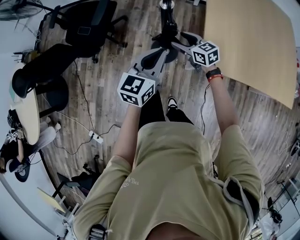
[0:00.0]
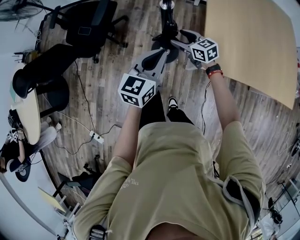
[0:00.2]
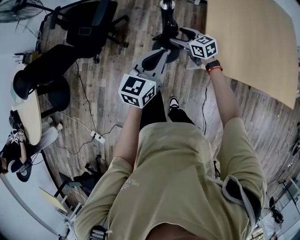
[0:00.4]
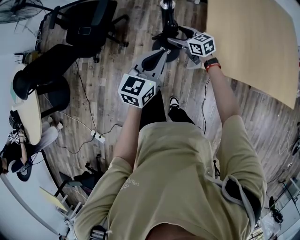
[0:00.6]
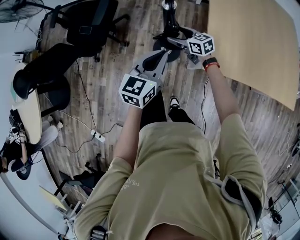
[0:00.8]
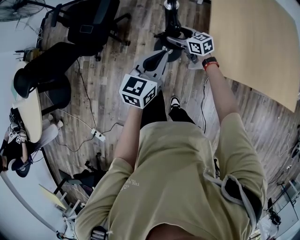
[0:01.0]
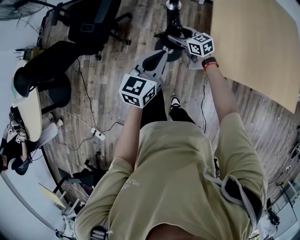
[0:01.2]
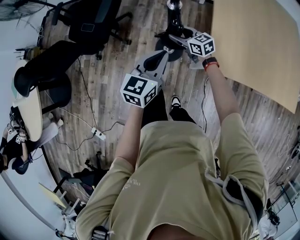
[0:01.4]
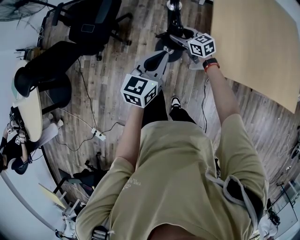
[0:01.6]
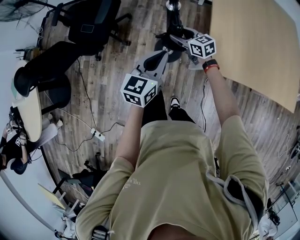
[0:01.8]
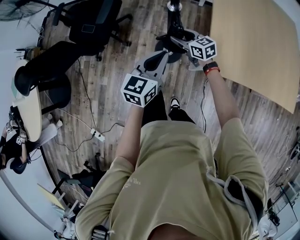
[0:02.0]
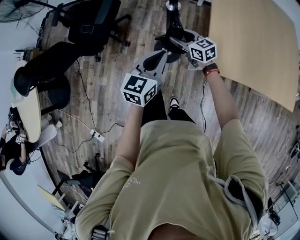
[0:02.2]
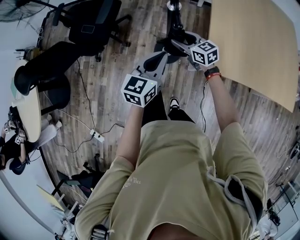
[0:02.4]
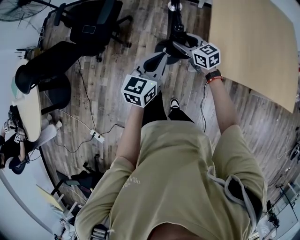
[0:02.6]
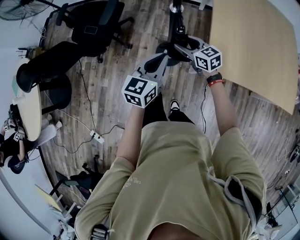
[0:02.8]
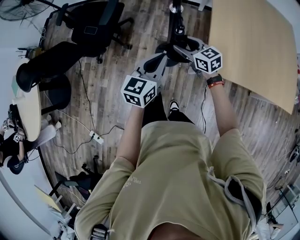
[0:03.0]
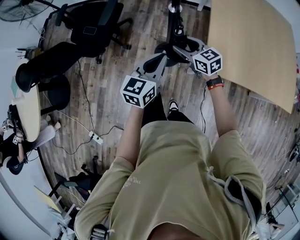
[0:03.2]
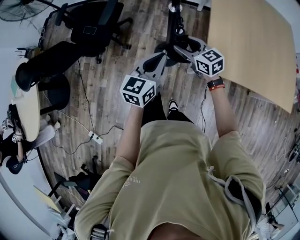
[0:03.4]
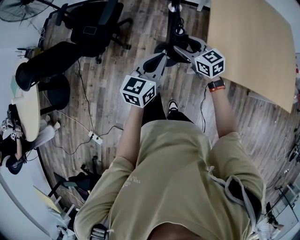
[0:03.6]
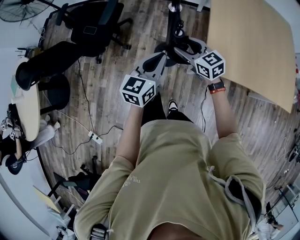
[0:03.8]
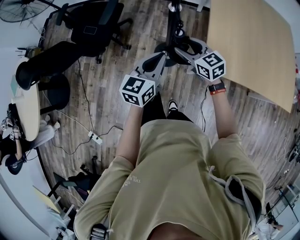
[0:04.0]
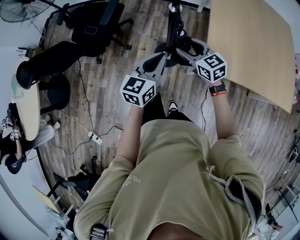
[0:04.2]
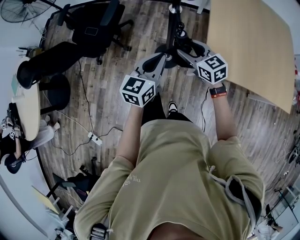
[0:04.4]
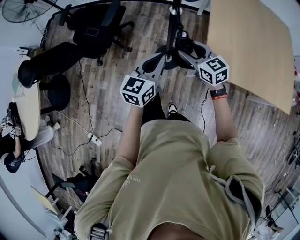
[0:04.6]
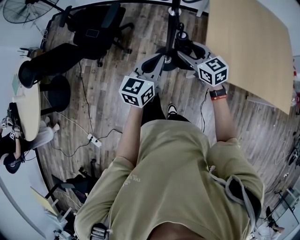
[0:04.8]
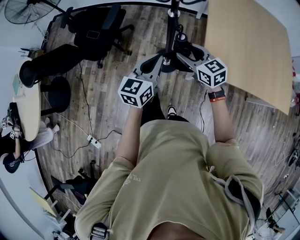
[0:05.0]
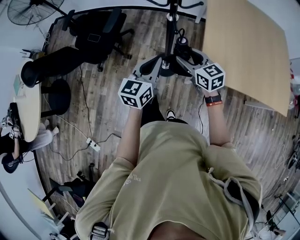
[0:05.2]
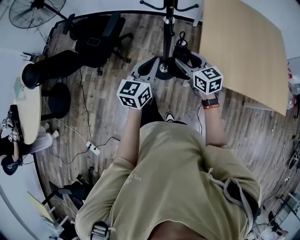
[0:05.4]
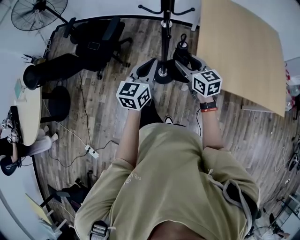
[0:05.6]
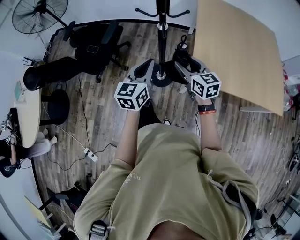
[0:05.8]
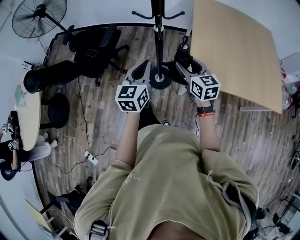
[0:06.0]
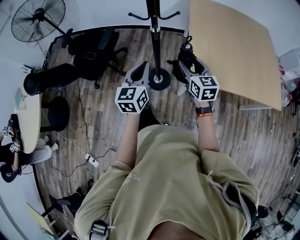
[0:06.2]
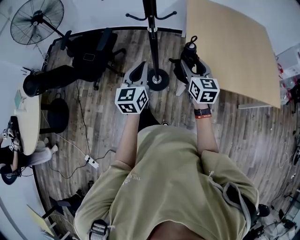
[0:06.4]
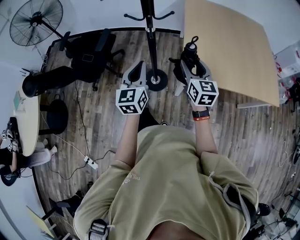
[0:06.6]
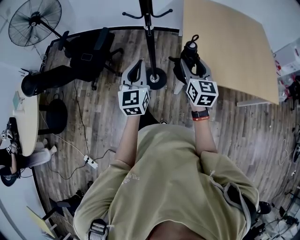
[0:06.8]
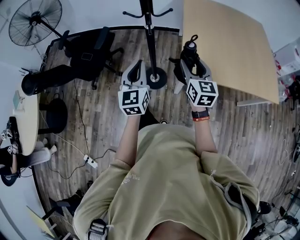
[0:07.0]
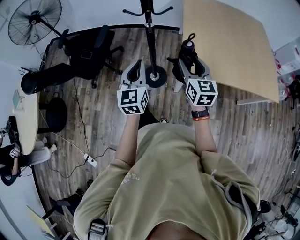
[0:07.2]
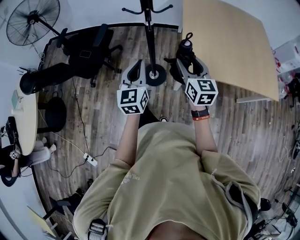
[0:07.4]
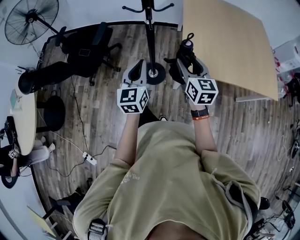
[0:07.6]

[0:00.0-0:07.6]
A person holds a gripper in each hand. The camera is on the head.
0:00.0 to 0:01.6: The right gripper shifts about 5 cm forward.
0:01.6 to 0:03.0: The right gripper shifts roughly 10 cm upward and backward.
0:03.0 to 0:04.6: The right gripper travels upward and backward by approximately 10 cm.
0:04.6 to 0:06.0: The right gripper travels backward, upward and to the right by about 15 cm. The left gripper is displaced upward by approximately 10 cm.
0:06.0 to 0:07.6: Both grippers move backward, roughly 5 cm.

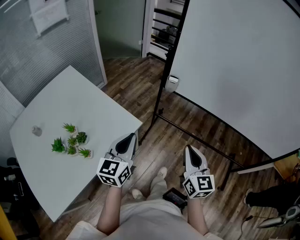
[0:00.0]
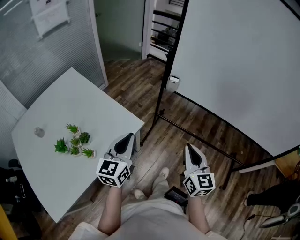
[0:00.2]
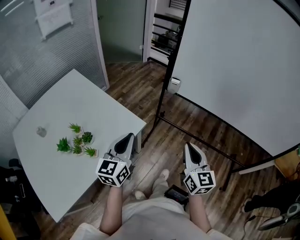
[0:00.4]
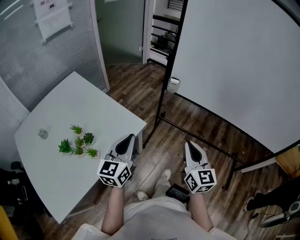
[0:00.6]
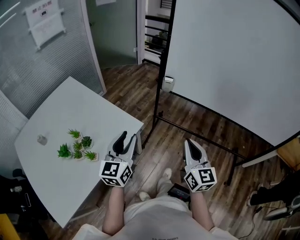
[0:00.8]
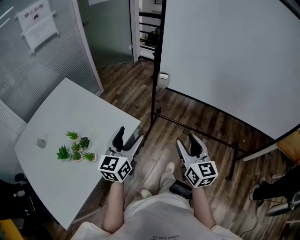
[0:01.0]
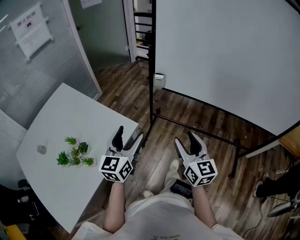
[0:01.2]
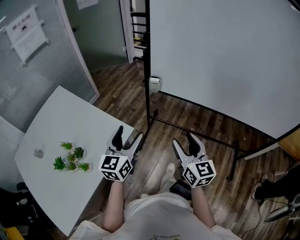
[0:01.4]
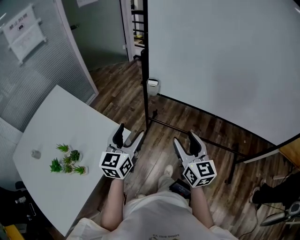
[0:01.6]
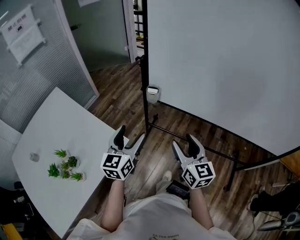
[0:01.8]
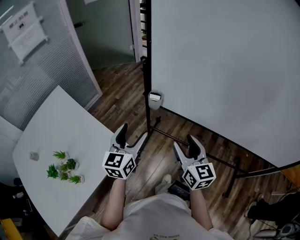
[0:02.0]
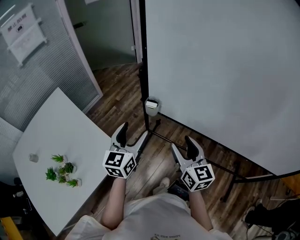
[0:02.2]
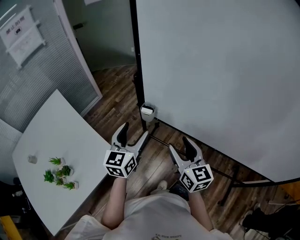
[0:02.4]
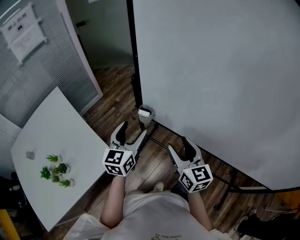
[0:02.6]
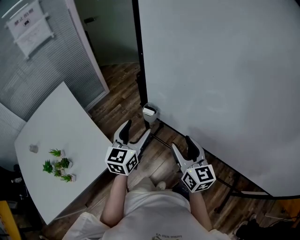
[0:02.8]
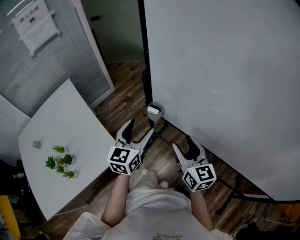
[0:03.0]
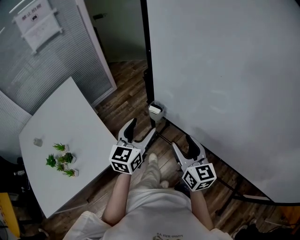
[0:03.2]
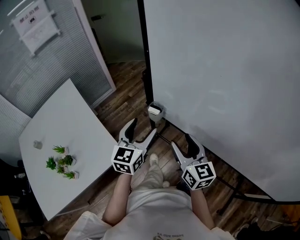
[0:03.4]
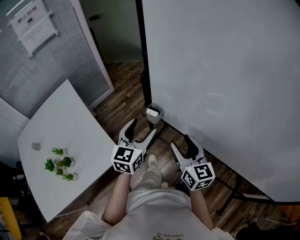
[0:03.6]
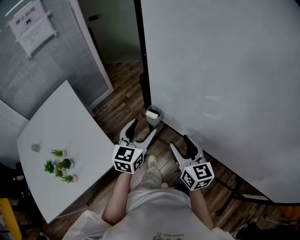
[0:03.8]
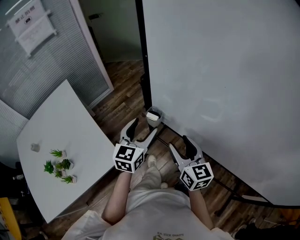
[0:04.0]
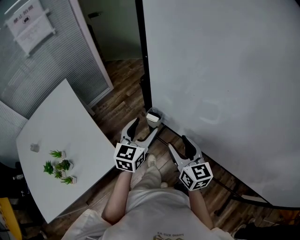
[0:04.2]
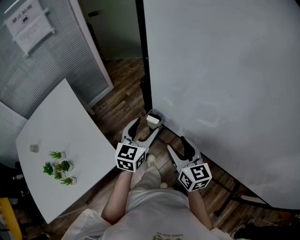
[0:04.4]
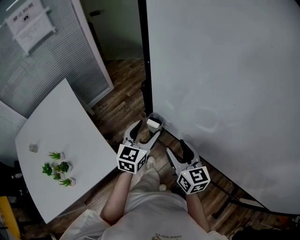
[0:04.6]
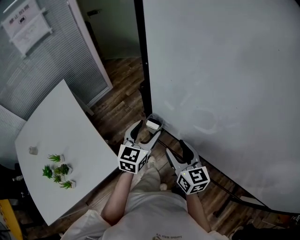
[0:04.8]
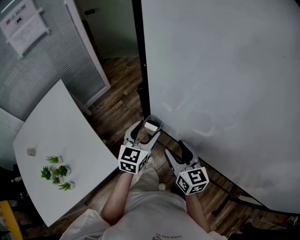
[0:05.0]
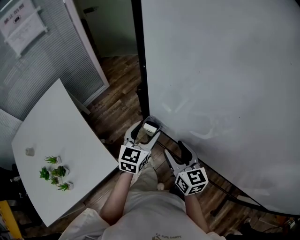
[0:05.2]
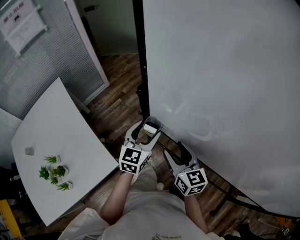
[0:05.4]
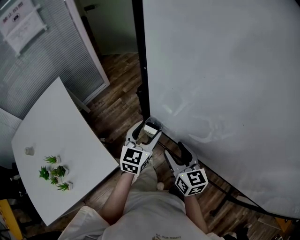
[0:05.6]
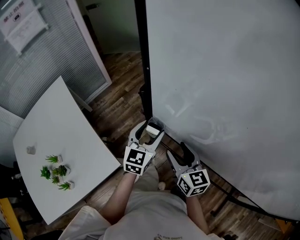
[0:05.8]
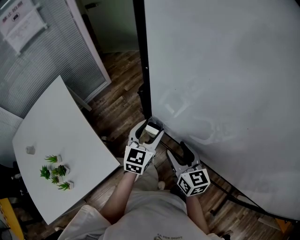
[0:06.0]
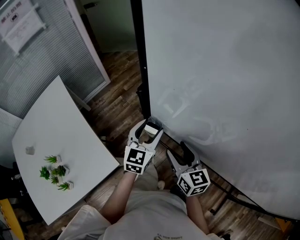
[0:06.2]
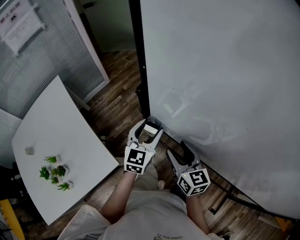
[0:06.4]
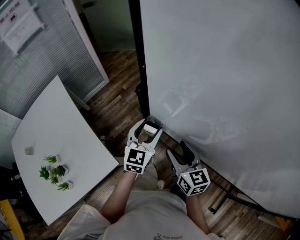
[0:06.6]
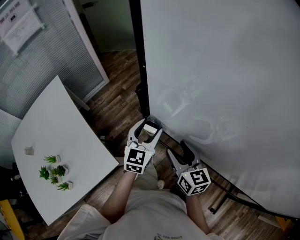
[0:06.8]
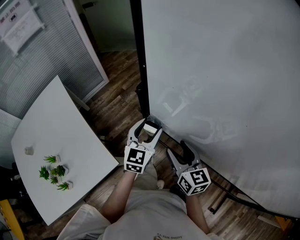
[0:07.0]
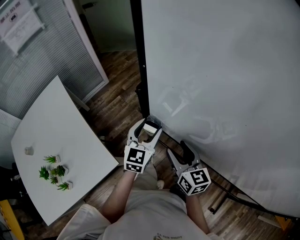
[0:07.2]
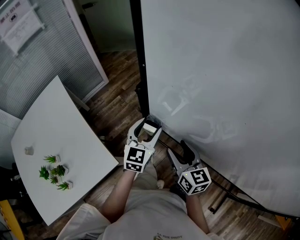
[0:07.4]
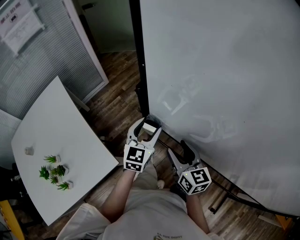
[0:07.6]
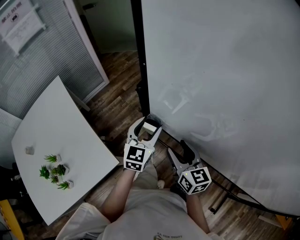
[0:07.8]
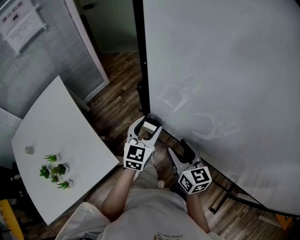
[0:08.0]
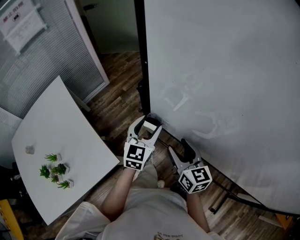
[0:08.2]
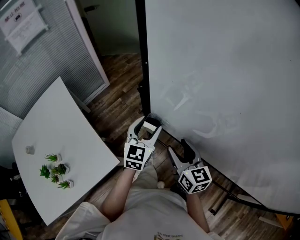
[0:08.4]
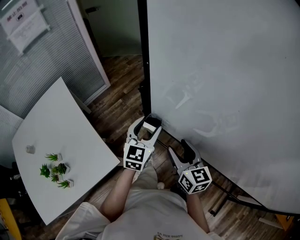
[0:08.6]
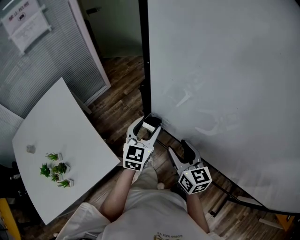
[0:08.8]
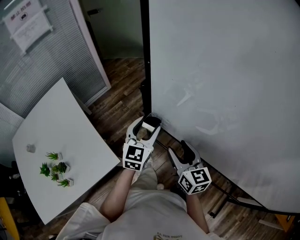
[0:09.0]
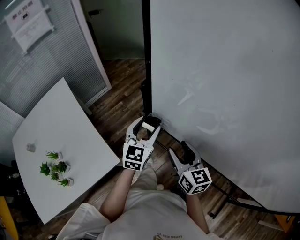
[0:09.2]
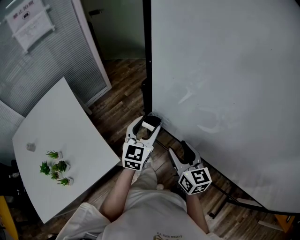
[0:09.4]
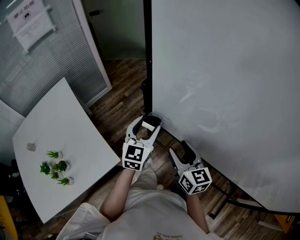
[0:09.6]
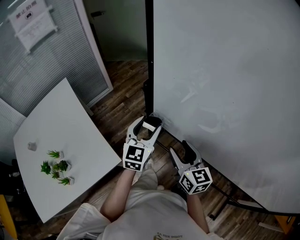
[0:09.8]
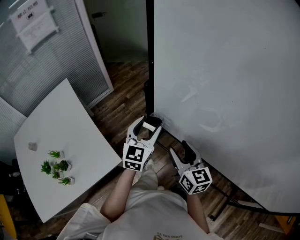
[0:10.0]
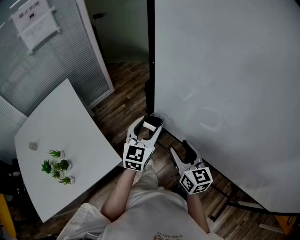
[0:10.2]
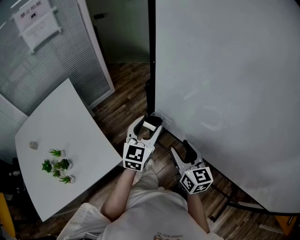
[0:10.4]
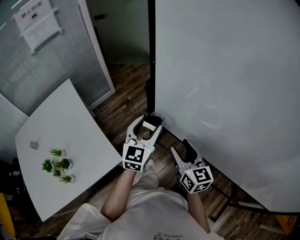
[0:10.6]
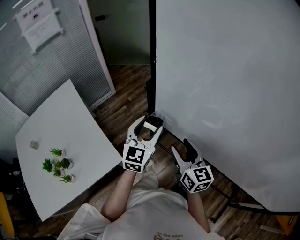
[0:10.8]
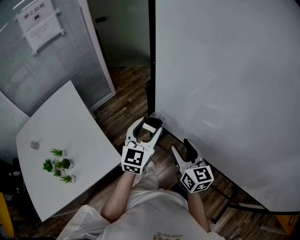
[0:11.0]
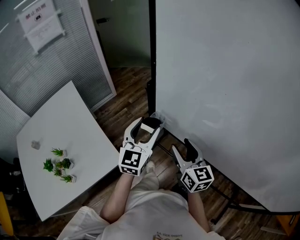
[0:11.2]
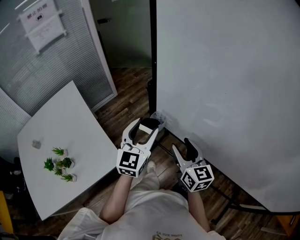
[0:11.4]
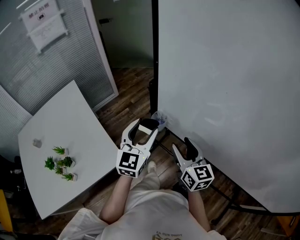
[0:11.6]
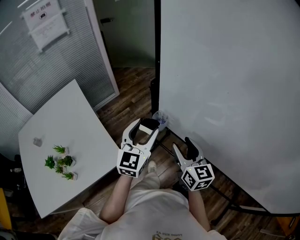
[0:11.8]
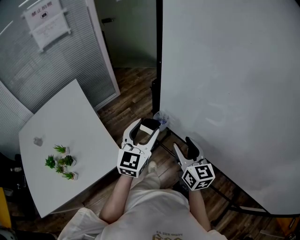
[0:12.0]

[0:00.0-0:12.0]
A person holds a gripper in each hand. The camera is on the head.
0:00.0 to 0:01.6: Both grippers travel together forward and to the right, approximately 10 cm. The right gripper opens its fingers, while the left gripper opens up.
0:01.6 to 0:03.0: The right gripper shifts about 20 cm forward. Meanwhile the left gripper moves forward and to the right, approximately 20 cm.
0:03.0 to 0:04.4: The two grippers go roughly 5 cm forward.
0:04.4 to 0:06.0: The left gripper shifts by some 5 cm.
0:06.0 to 0:07.6: Both grippers stay put.
0:07.6 to 0:09.0: The grippers move only a little.
0:09.0 to 0:10.4: The grippers move only a little.
0:10.4 to 0:12.0: The left gripper shifts by approximately 5 cm.

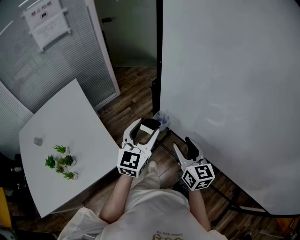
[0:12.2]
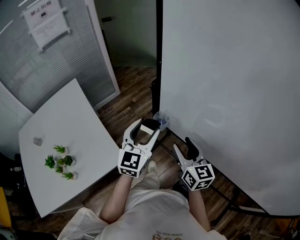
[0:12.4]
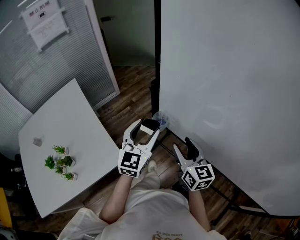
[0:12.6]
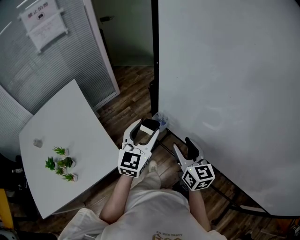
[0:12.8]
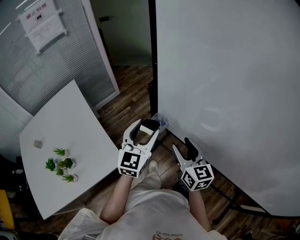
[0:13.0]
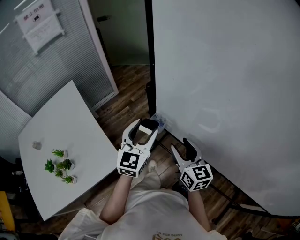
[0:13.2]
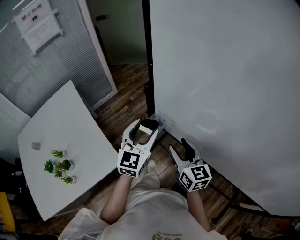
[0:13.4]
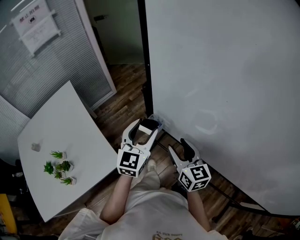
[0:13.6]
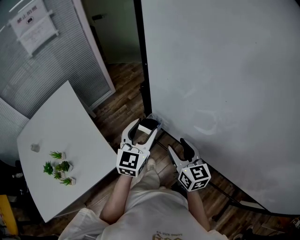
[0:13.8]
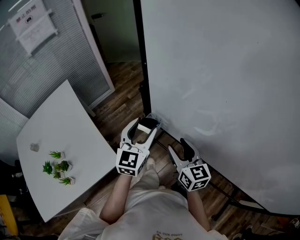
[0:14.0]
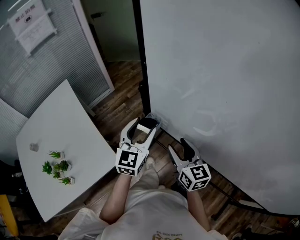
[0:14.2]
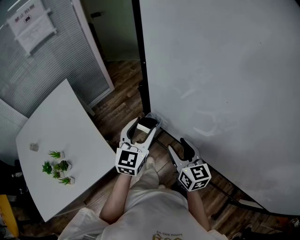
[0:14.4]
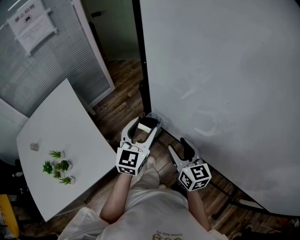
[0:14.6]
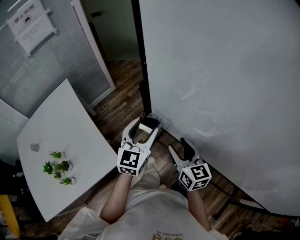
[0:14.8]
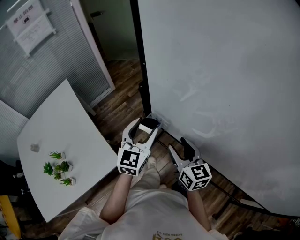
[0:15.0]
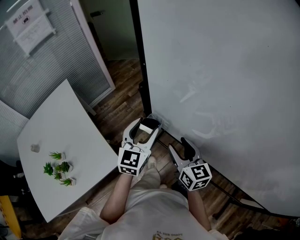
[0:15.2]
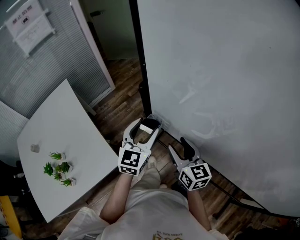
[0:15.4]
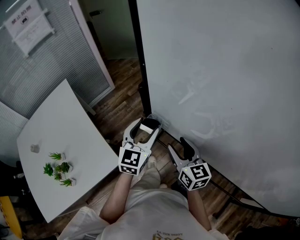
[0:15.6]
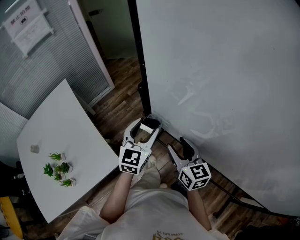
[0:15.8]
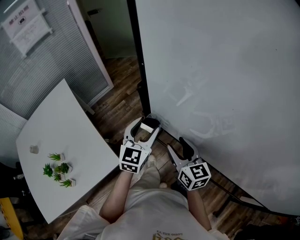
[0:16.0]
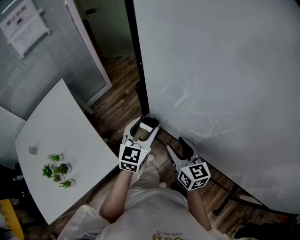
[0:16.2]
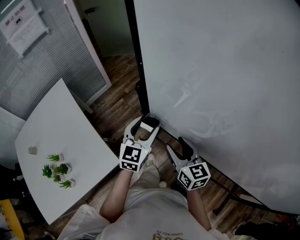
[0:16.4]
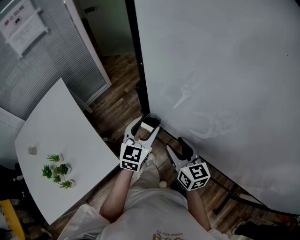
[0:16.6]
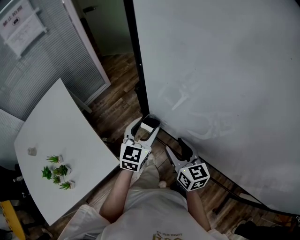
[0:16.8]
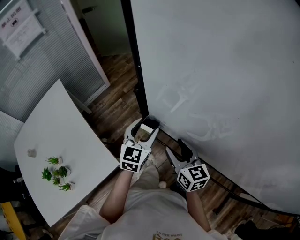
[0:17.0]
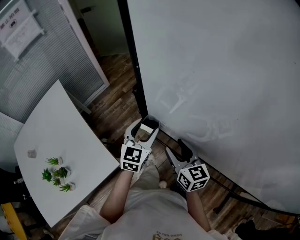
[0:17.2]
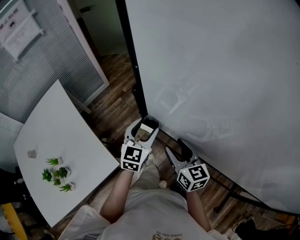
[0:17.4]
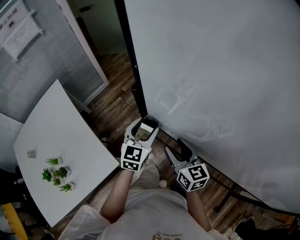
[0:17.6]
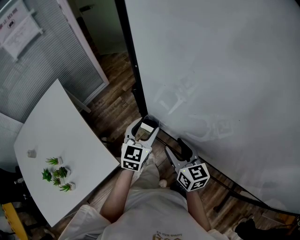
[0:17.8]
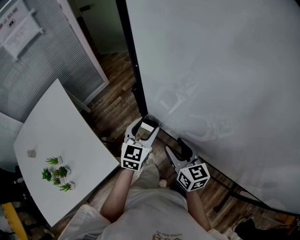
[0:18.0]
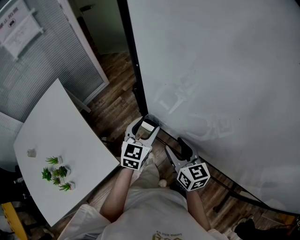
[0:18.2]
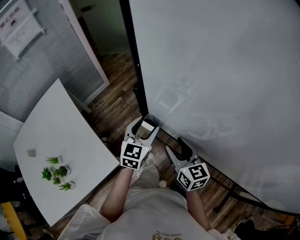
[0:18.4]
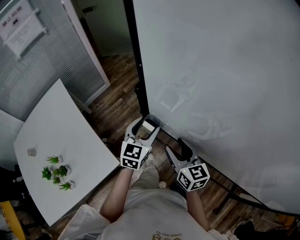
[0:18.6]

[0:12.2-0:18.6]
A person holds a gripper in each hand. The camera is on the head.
0:12.2 to 0:13.8: The left gripper changes place by approximately 5 cm.
0:13.8 to 0:15.4: The grippers stay close to where they were, moving slightly.
0:15.4 to 0:17.0: The left gripper moves roughly 5 cm.
0:17.0 to 0:18.6: The grippers make only small movements.
